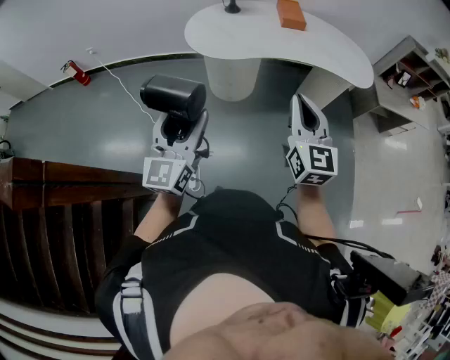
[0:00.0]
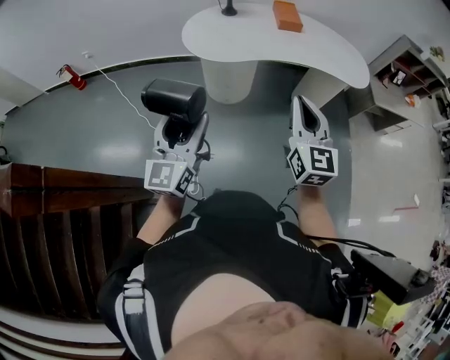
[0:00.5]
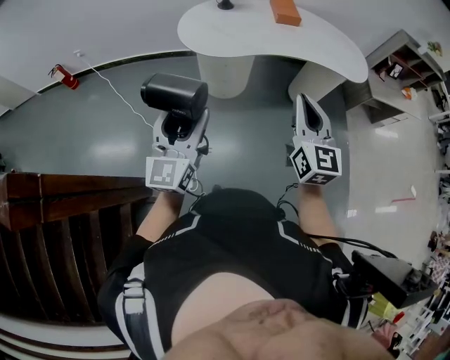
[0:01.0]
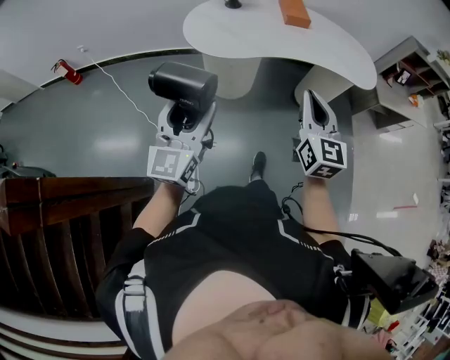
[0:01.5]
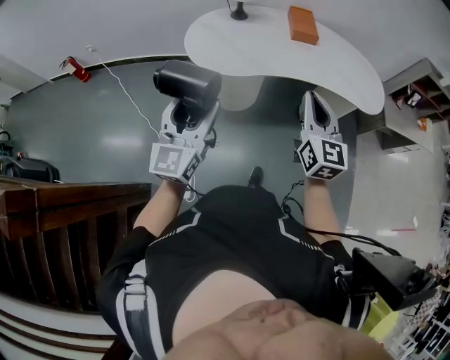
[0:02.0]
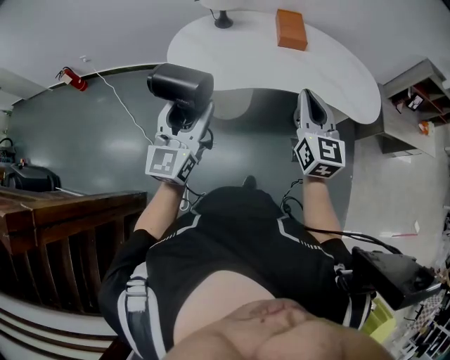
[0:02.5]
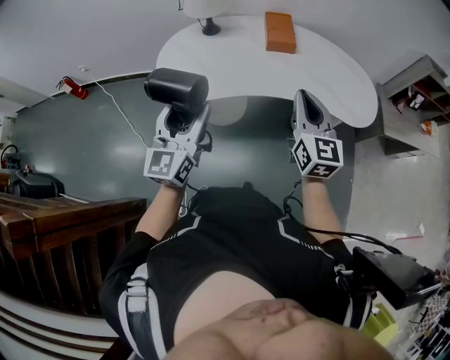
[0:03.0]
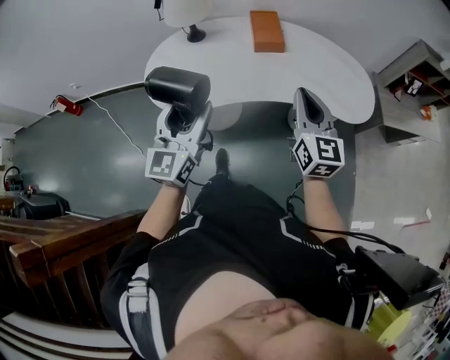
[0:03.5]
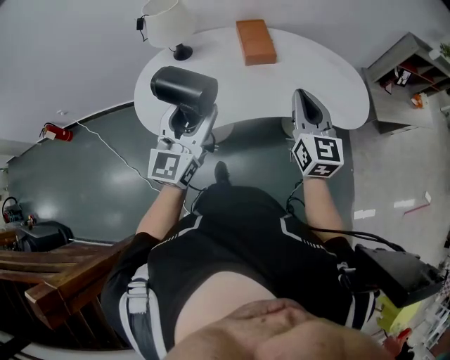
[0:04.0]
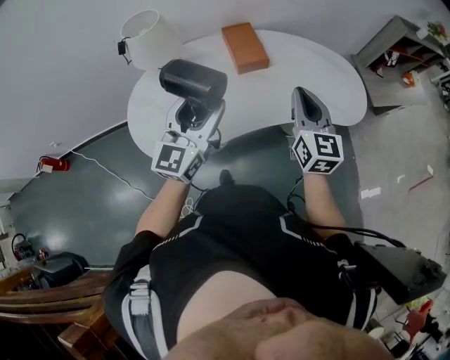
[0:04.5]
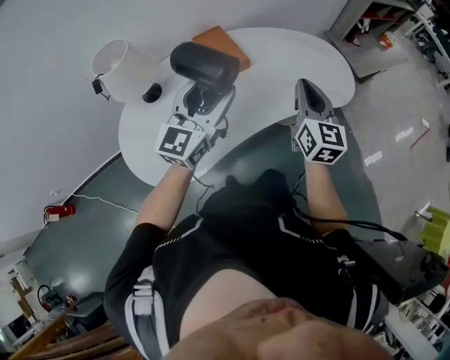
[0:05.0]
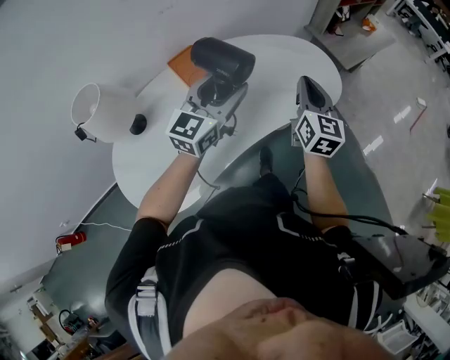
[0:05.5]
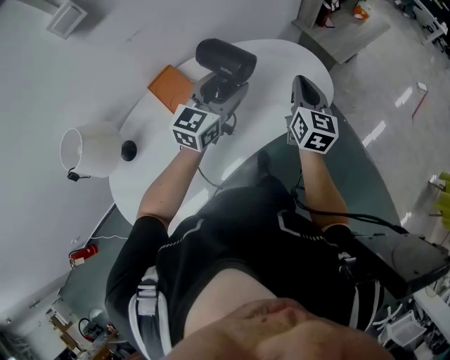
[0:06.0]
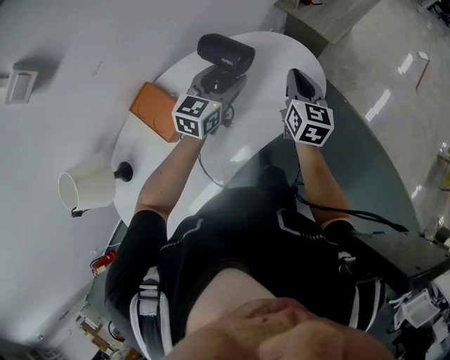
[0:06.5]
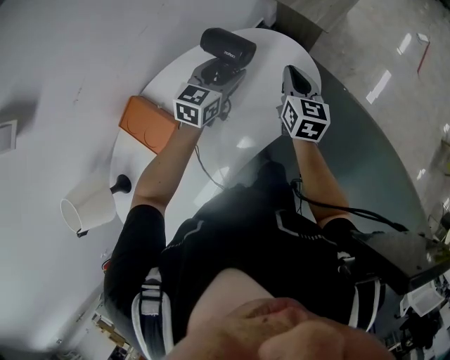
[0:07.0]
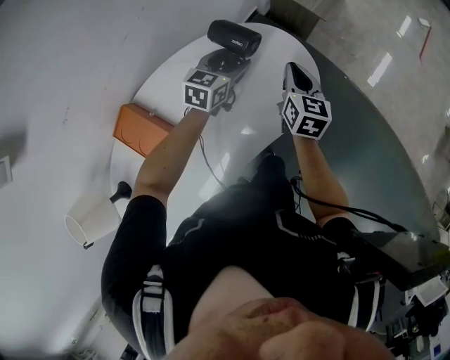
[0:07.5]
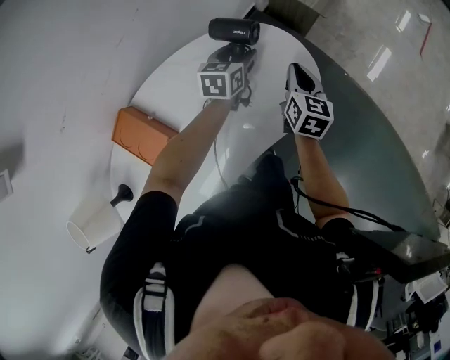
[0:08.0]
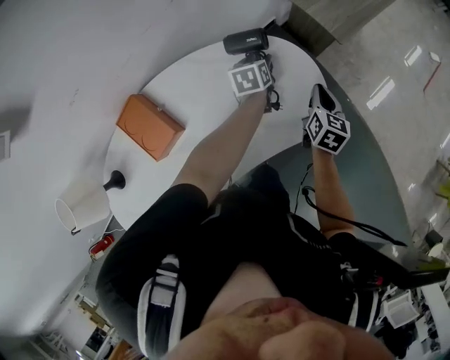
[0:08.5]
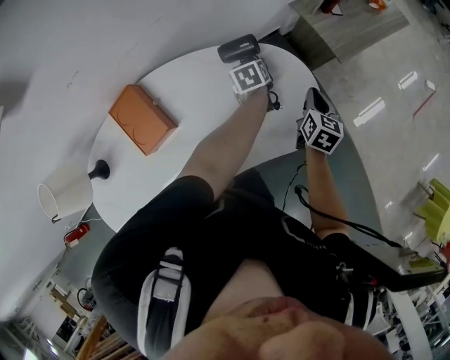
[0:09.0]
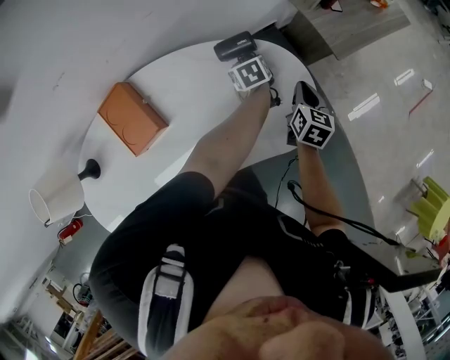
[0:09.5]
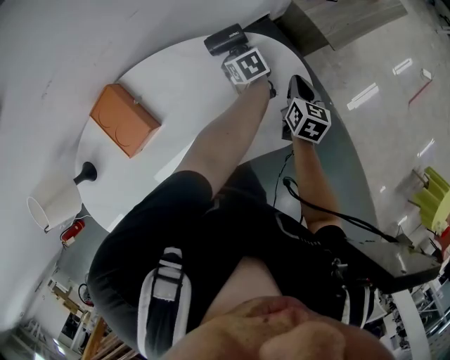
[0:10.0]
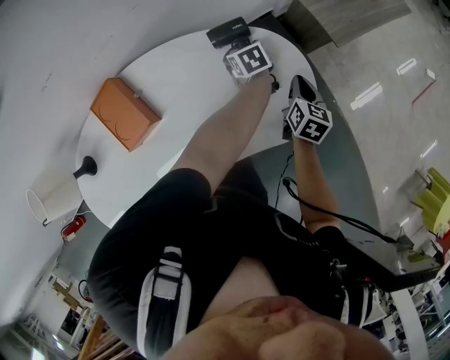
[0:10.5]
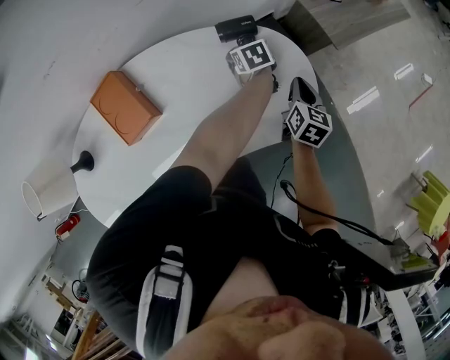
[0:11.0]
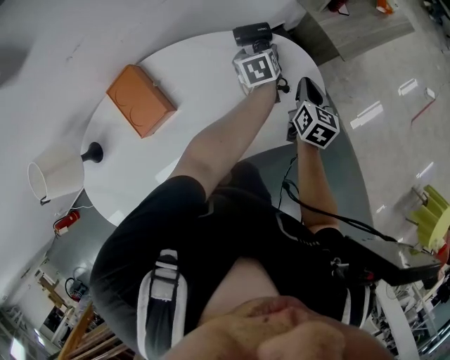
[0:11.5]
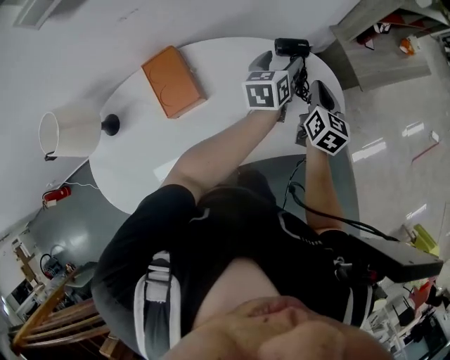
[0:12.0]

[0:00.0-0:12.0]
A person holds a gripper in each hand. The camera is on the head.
0:00.0 to 0:02.0: Both grippers move forward, some 15 cm.
0:02.0 to 0:04.0: The grippers both shift forward and to the right by about 30 cm.
0:04.0 to 0:06.0: The left gripper ends up roughly 40 cm from where it was, and changes its angle by about 50 degrees. Meanwhile the right gripper moves roughly 30 cm, and turns by about 40 degrees.
0:06.0 to 0:08.0: The left gripper moves forward and downward, about 35 cm, and turns by approximately 30 degrees. Meanwhile the right gripper shifts roughly 25 cm forward, downward and to the right, and swivels some 20 degrees.
0:08.0 to 0:10.0: The left gripper heads downward, covering about 10 cm, and swivels some 50 degrees, while the right gripper changes place by roughly 5 cm.
0:10.0 to 0:12.0: The left gripper is displaced upward by about 20 cm, and points its fingers about 30 degrees further upward. Meanwhile the right gripper shifts approximately 15 cm upward and to the left.

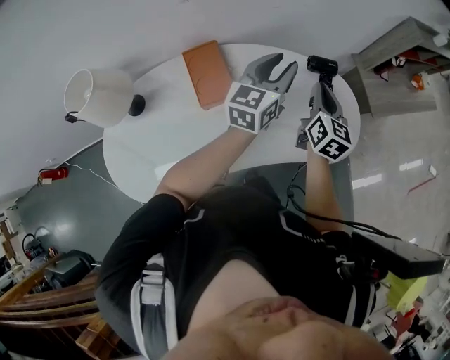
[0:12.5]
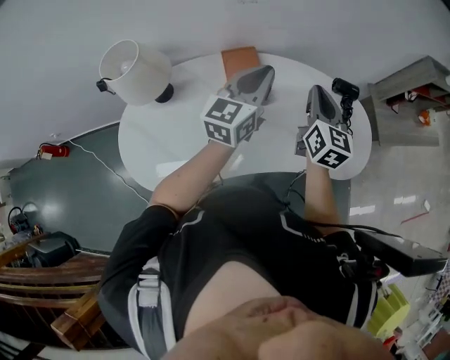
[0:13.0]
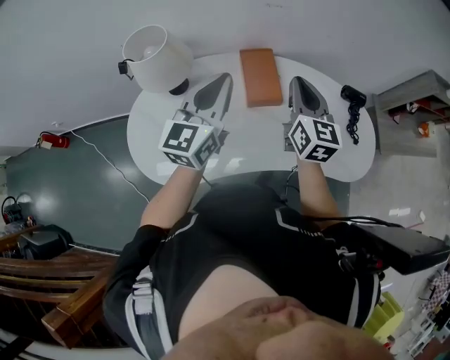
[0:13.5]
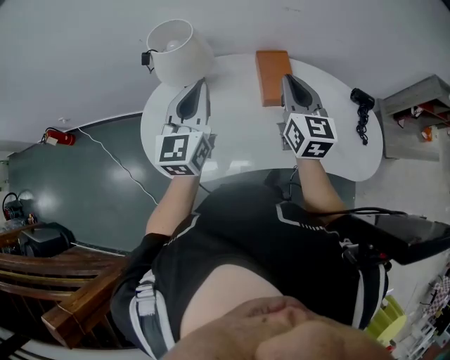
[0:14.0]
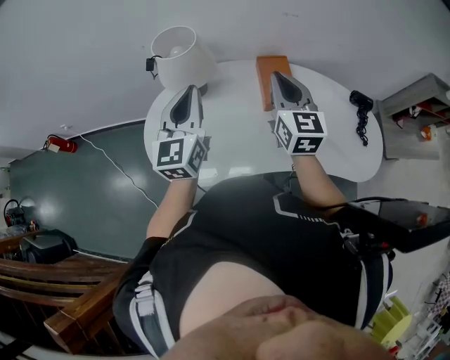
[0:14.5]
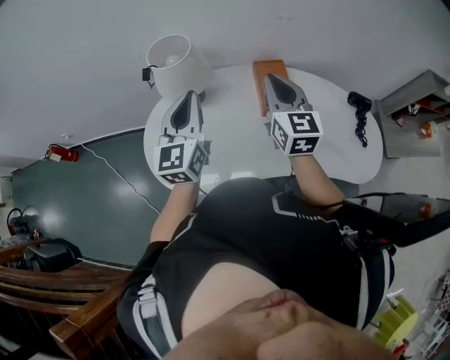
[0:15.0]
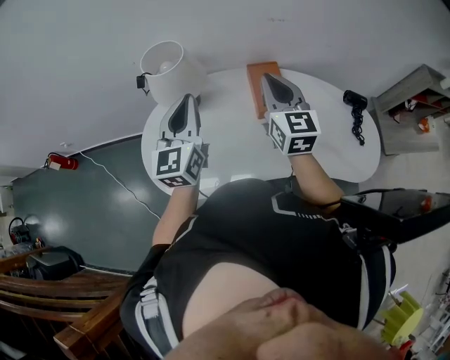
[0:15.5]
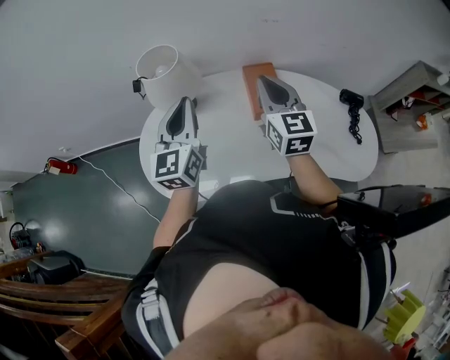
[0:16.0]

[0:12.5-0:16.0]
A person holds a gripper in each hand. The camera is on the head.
0:12.5 to 0:14.5: The right gripper ends up roughly 40 cm from where it was, and swivels approximately 40 degrees; the left gripper changes place by some 50 cm, swivels about 40 degrees, and closes up.
0:14.5 to 0:16.0: There are only small adjustments of the grippers.

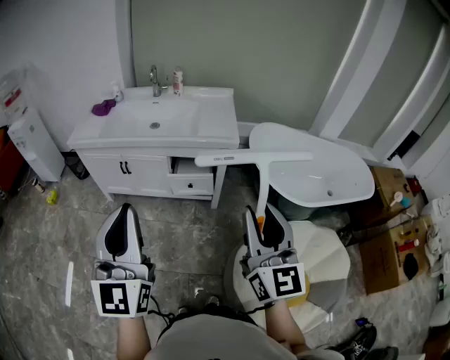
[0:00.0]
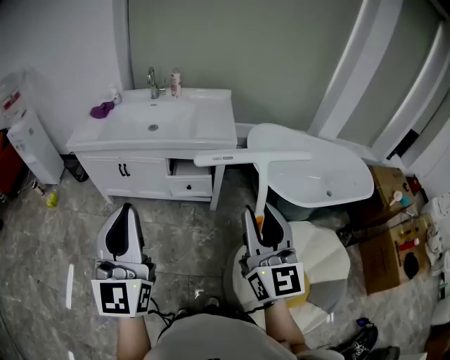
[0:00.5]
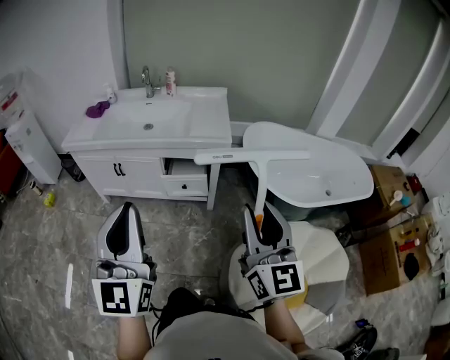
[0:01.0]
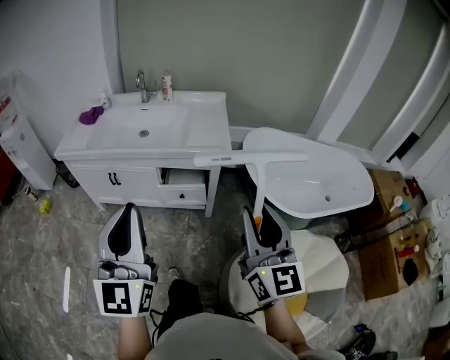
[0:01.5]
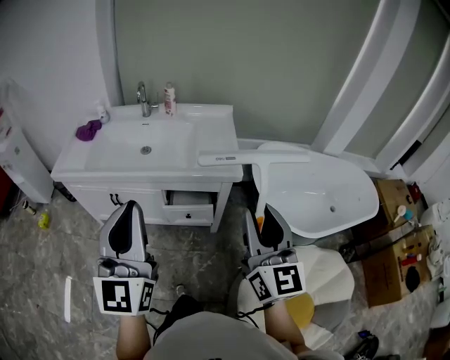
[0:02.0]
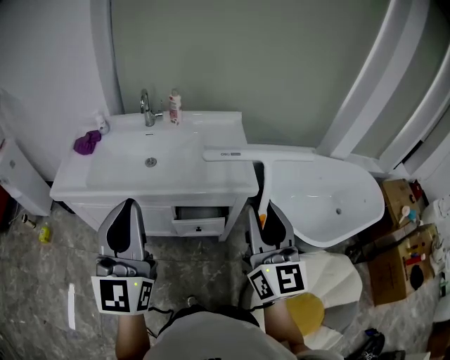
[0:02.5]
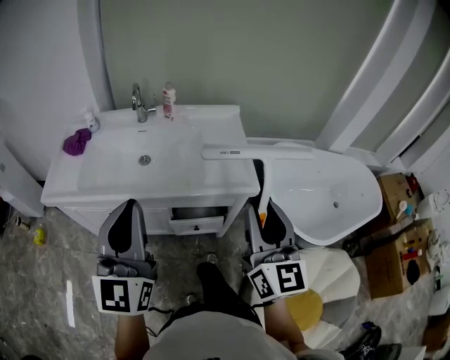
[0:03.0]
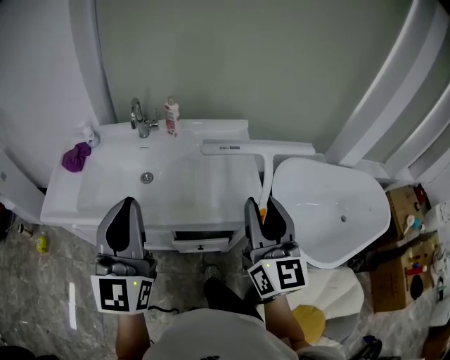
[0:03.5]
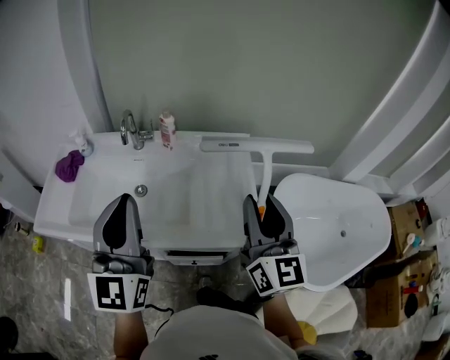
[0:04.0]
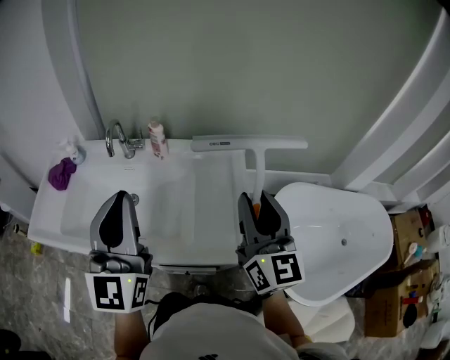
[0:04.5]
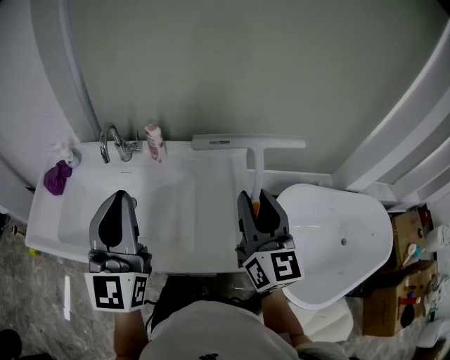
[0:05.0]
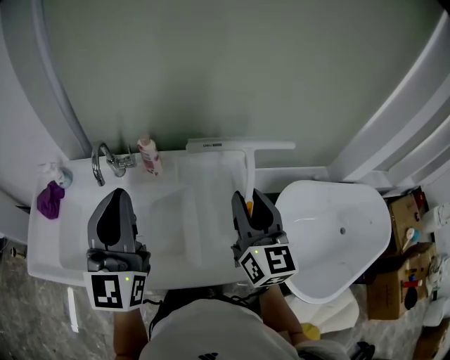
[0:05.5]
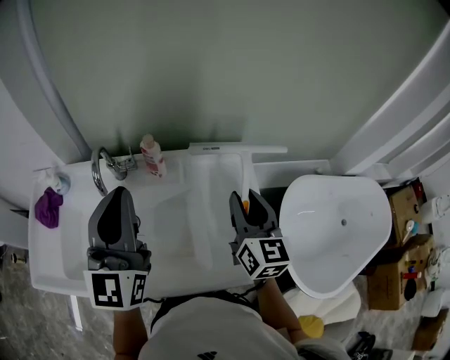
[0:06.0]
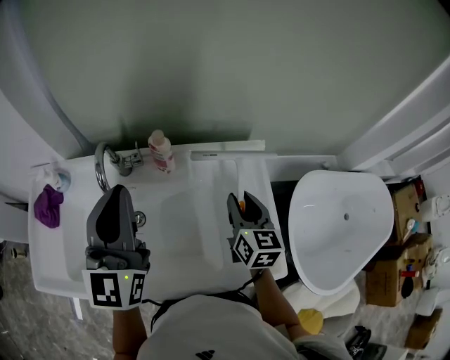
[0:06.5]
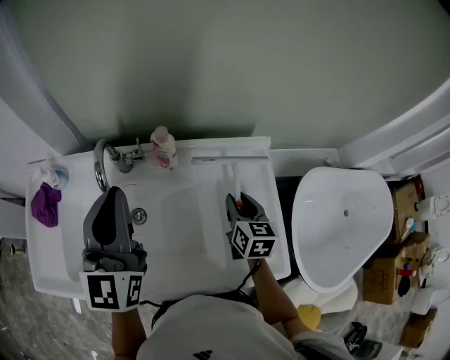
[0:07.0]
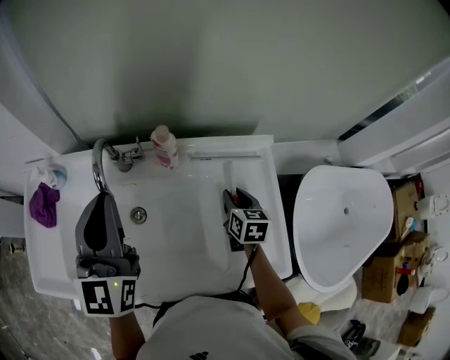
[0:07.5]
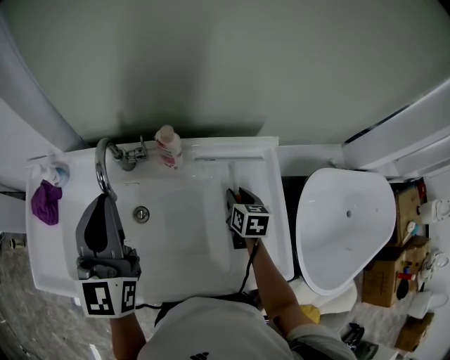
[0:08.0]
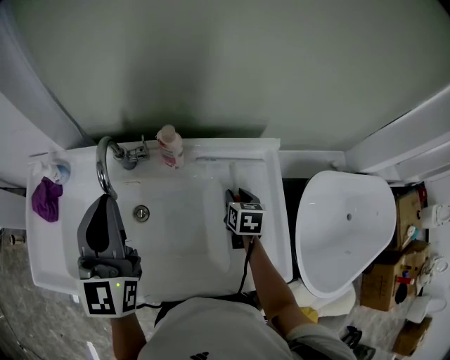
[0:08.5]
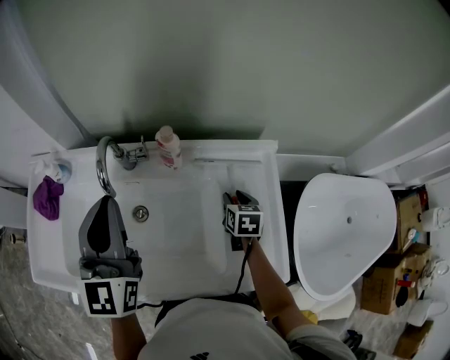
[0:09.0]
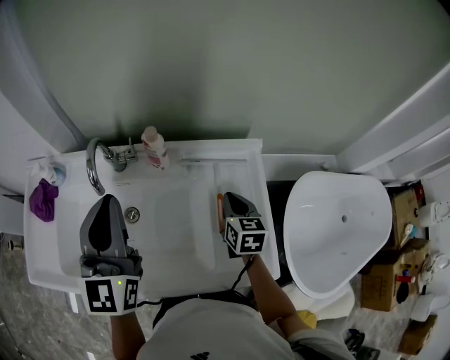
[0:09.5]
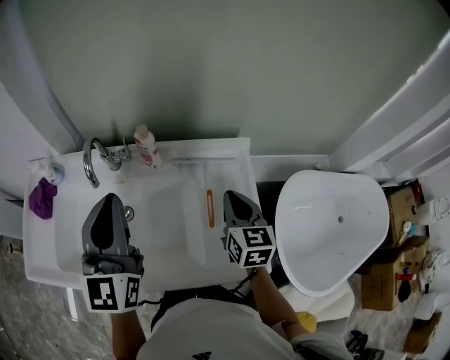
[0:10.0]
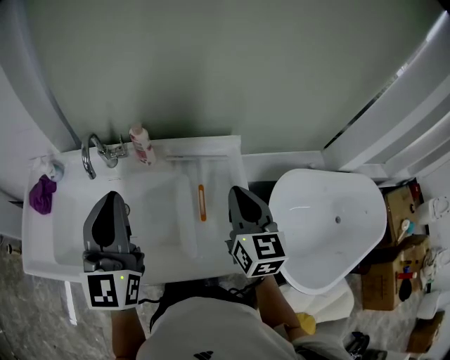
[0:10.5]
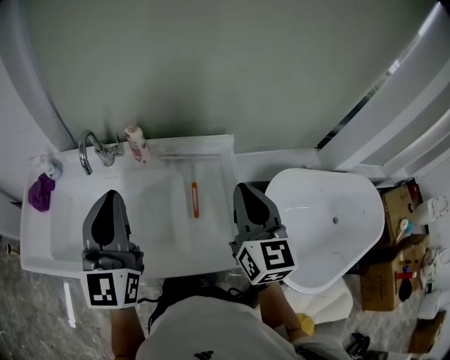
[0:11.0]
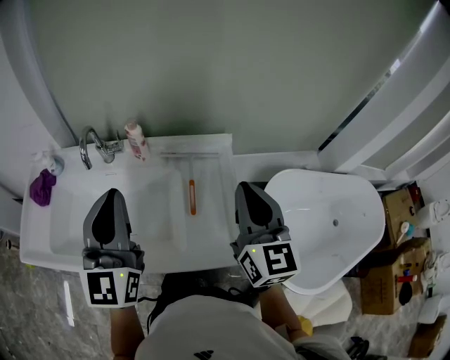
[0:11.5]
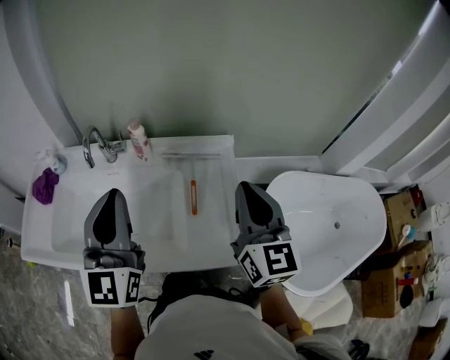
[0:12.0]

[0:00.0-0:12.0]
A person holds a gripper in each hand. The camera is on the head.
0:00.0 to 0:02.0: The two grippers go roughly 20 cm forward.
0:02.0 to 0:04.0: The grippers both shift forward by about 35 cm.
0:04.0 to 0:06.0: The left gripper goes roughly 20 cm forward, while the right gripper goes approximately 25 cm forward and downward.
0:06.0 to 0:08.0: The left gripper heads to the left and downward, covering approximately 10 cm; the right gripper is displaced downward by approximately 25 cm, and tips its fingers downward by about 40 degrees.
0:08.0 to 0:10.0: The left gripper shifts some 10 cm to the right and backward, while the right gripper goes about 20 cm upward and backward, rotates about 20 degrees, and closes its fingers.
0:10.0 to 0:12.0: The left gripper heads backward and to the right, covering about 10 cm. The right gripper goes about 20 cm upward and backward, and rotates approximately 20 degrees.
